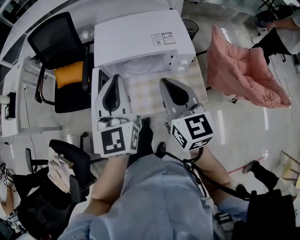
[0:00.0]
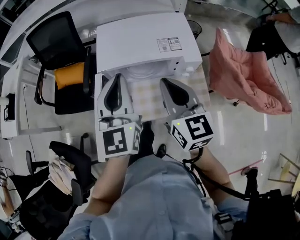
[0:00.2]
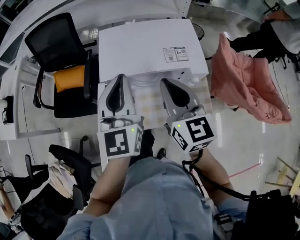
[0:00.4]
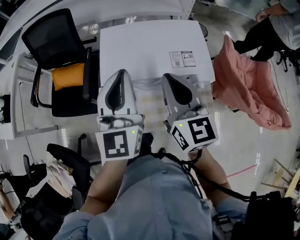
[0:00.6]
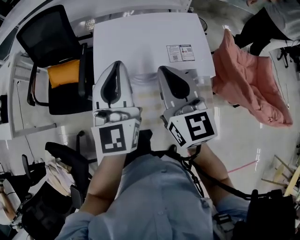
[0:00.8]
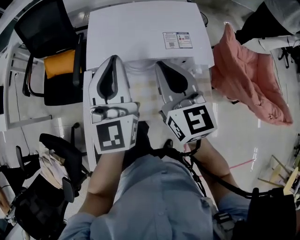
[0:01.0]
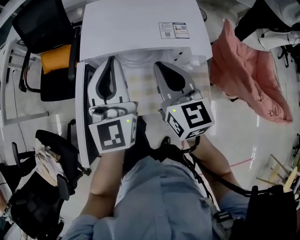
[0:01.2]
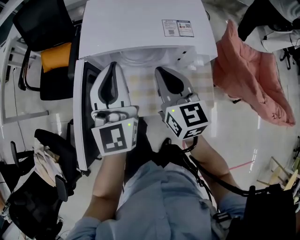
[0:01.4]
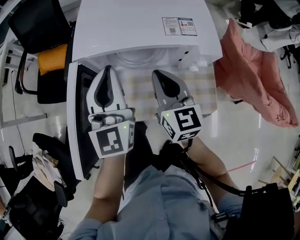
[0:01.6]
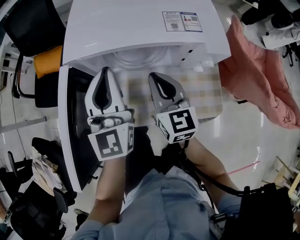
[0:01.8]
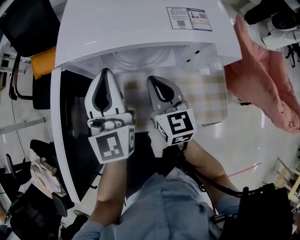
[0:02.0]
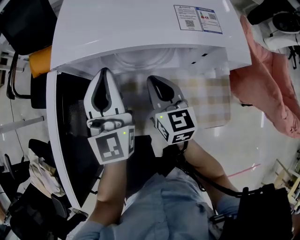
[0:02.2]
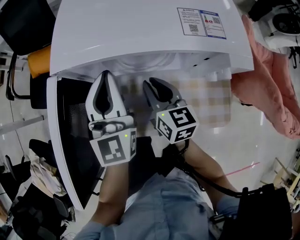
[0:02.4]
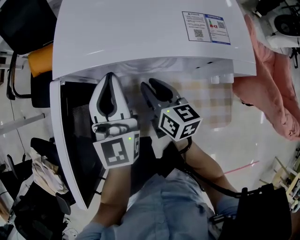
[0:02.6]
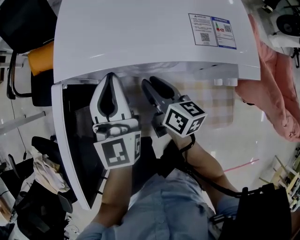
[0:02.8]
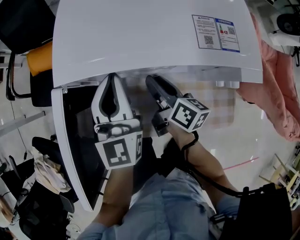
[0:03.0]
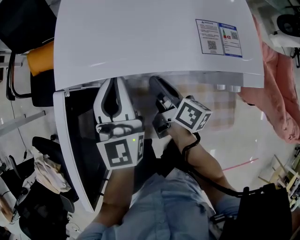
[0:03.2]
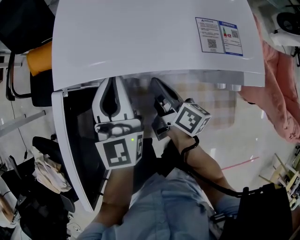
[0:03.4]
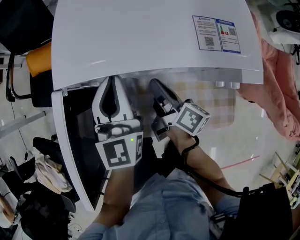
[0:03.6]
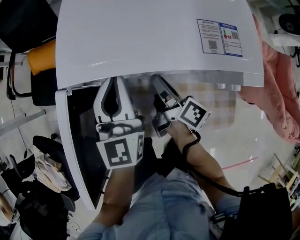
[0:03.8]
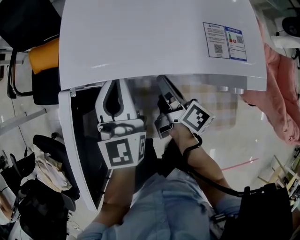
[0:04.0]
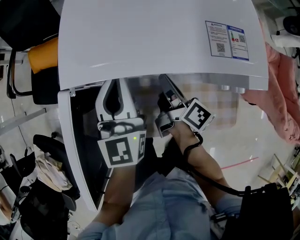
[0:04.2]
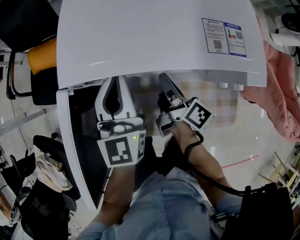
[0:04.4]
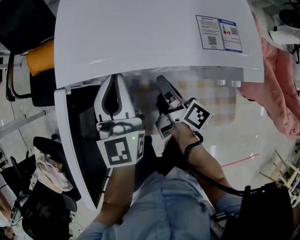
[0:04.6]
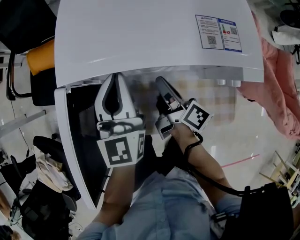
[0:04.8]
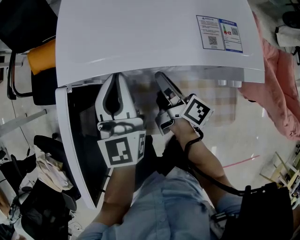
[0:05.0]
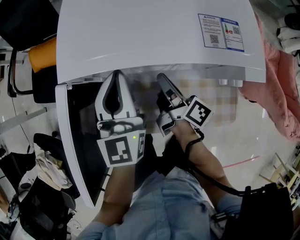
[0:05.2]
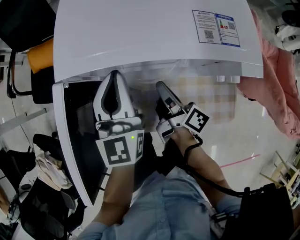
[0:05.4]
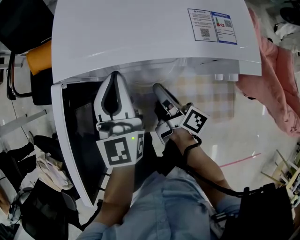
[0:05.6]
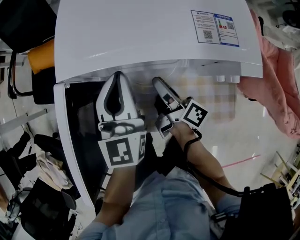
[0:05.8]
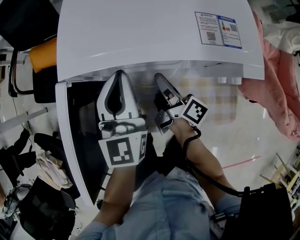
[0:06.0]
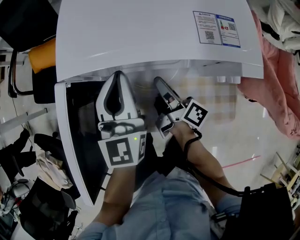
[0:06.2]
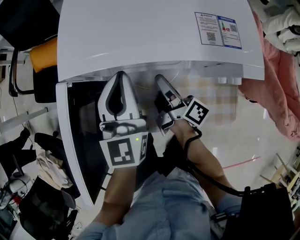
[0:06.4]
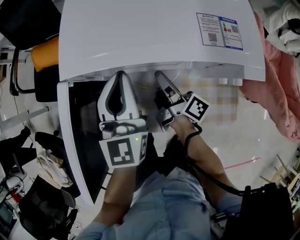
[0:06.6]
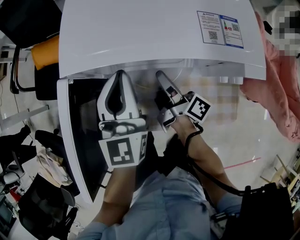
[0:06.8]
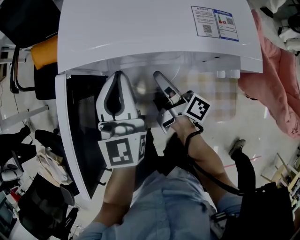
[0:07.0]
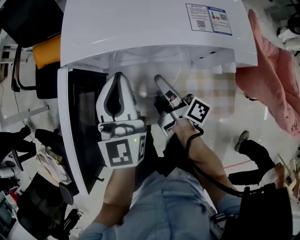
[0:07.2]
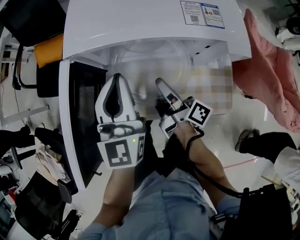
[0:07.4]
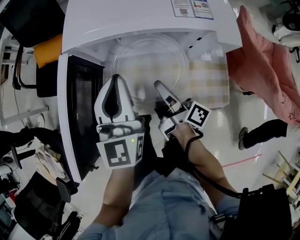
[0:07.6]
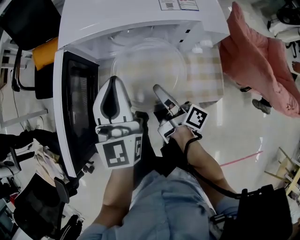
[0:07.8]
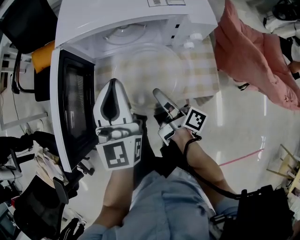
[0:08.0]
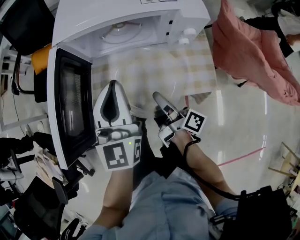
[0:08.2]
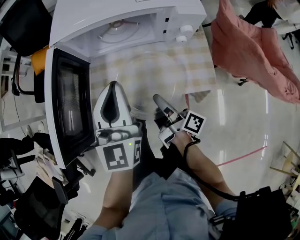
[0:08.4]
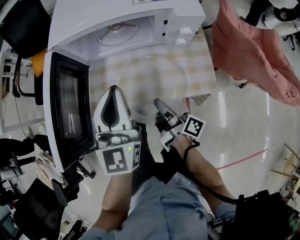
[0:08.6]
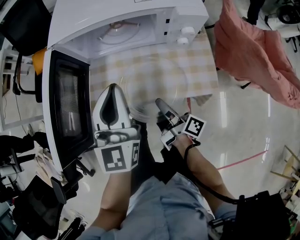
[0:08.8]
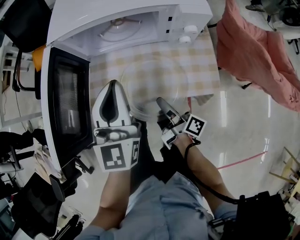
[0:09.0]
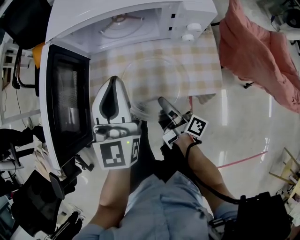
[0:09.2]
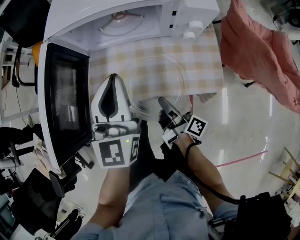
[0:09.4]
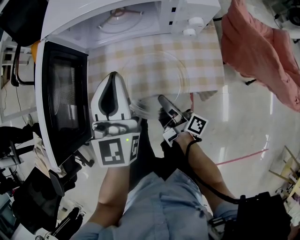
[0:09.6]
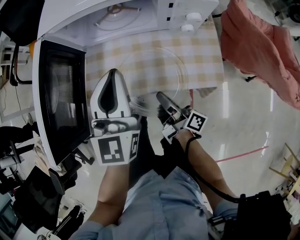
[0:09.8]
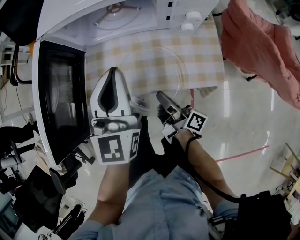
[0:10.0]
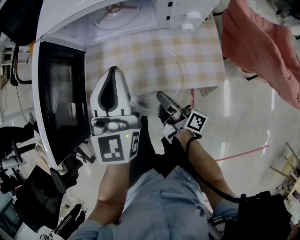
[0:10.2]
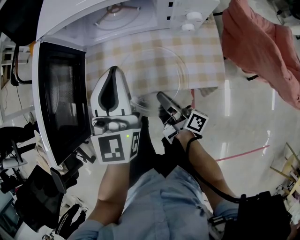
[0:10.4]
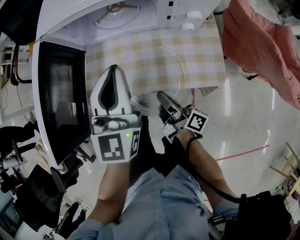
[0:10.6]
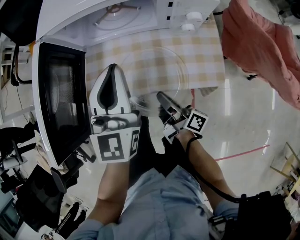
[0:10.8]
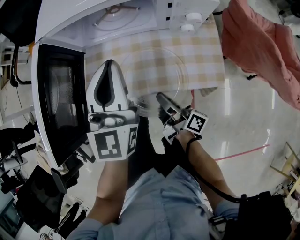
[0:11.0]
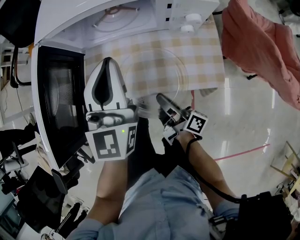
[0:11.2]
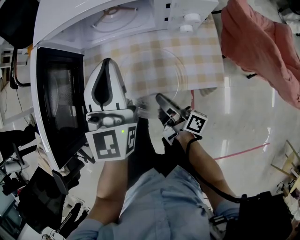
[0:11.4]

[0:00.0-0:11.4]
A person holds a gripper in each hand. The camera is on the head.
0:00.0 to 0:01.4: The grippers both shift downward and forward by about 15 cm.
0:01.4 to 0:02.8: The right gripper moves downward, some 20 cm, turns by approximately 30 degrees, and opens. The left gripper is displaced downward and forward by some 15 cm.
0:02.8 to 0:04.2: The right gripper changes its angle by about 30 degrees.
0:04.2 to 0:05.6: The right gripper travels backward by some 5 cm.
0:05.6 to 0:07.2: The grippers make only small movements.
0:07.2 to 0:08.6: The grippers both shift backward by roughly 15 cm.
0:08.6 to 0:11.4: The grippers stay close to where they were, moving slightly.

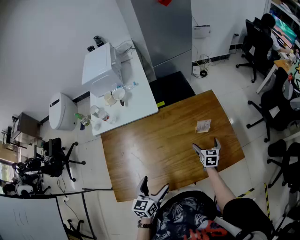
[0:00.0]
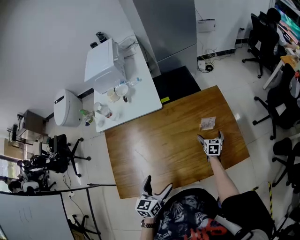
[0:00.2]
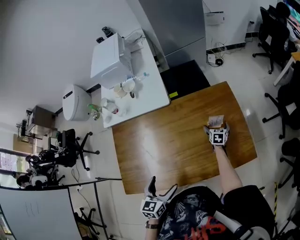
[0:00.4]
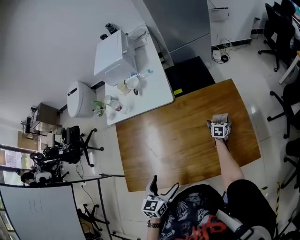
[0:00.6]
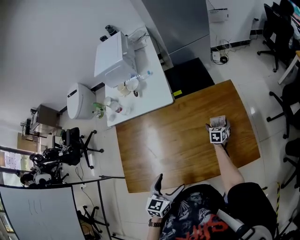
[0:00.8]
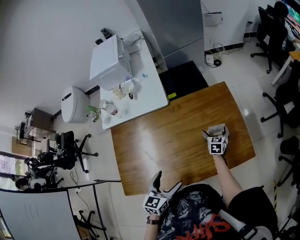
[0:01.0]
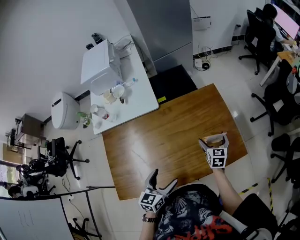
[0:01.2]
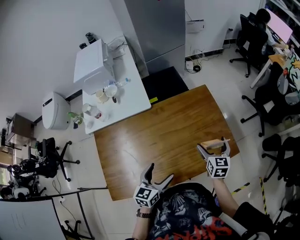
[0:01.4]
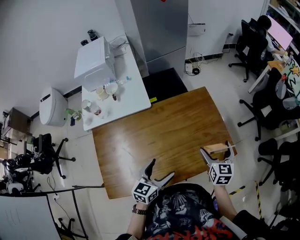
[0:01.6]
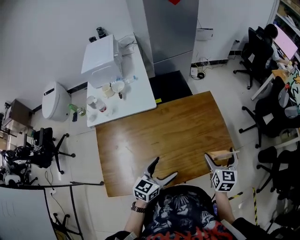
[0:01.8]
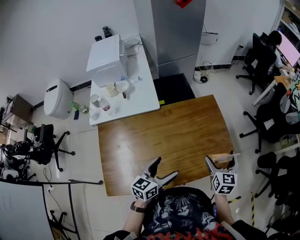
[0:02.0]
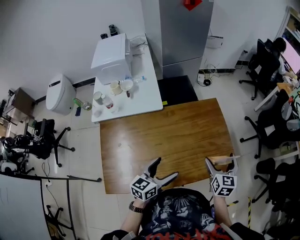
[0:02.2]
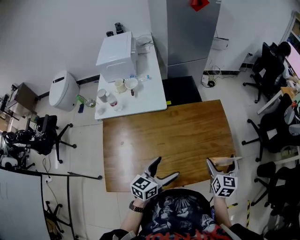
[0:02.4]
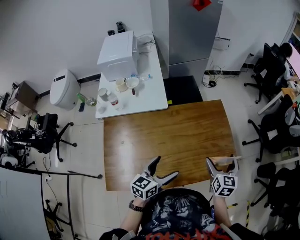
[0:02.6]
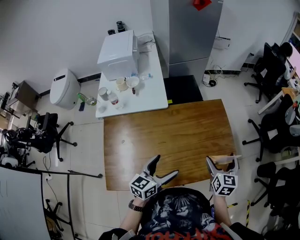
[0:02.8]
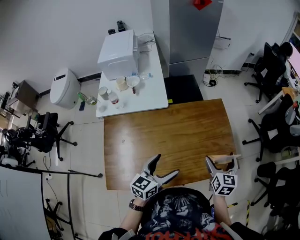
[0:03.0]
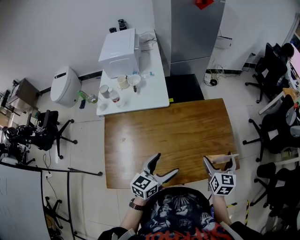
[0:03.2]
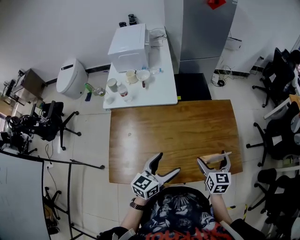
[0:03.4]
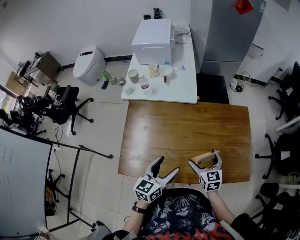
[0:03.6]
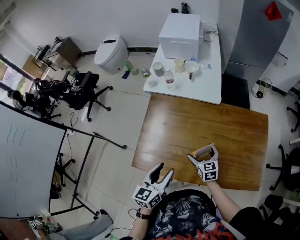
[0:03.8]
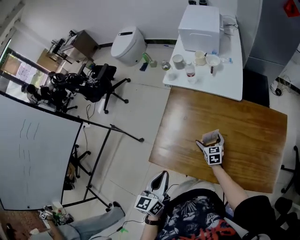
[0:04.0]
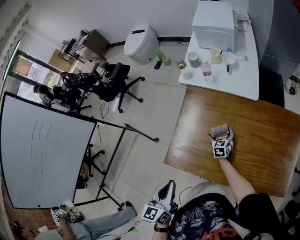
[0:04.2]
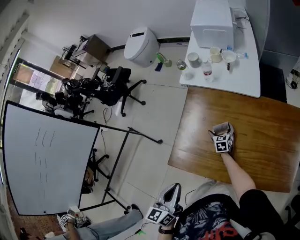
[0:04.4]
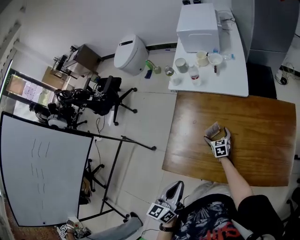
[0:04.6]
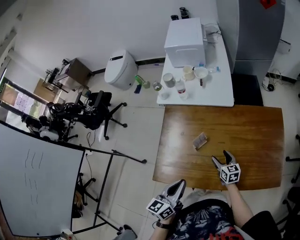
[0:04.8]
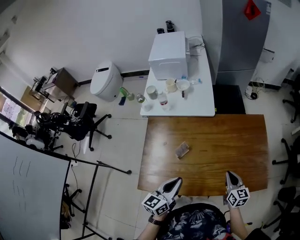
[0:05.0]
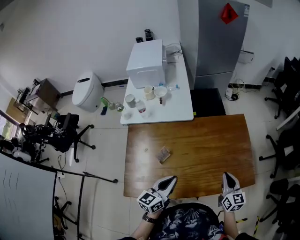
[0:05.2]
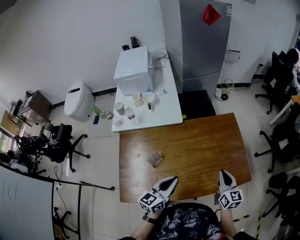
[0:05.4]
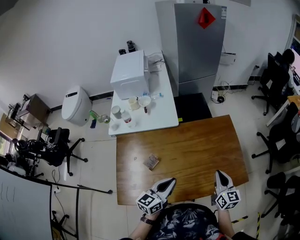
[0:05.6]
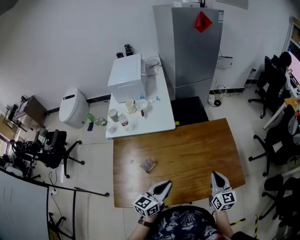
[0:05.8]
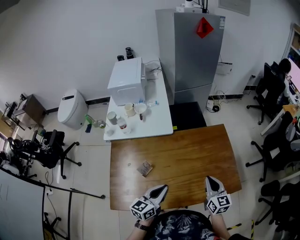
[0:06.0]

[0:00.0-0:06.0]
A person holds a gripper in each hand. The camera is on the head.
0:00.0 to 0:01.6: The right gripper travels upward by roughly 20 cm, while the left gripper travels forward and to the right by roughly 10 cm.
0:01.6 to 0:03.0: The left gripper ends up some 5 cm from where it was.
0:03.0 to 0:04.4: The left gripper changes place by roughly 35 cm, changes its angle by some 50 degrees, and closes, while the right gripper shifts by some 60 cm, and changes its angle by some 40 degrees.
0:04.4 to 0:06.0: The left gripper shifts by some 30 cm, and rotates roughly 50 degrees. Meanwhile the right gripper shifts by about 50 cm, changes its angle by roughly 40 degrees, and closes.

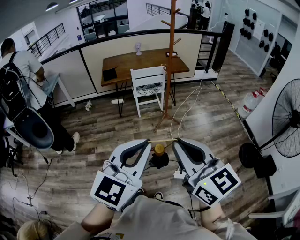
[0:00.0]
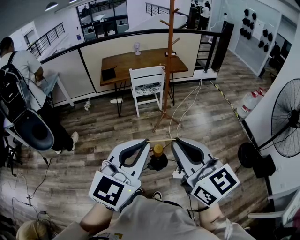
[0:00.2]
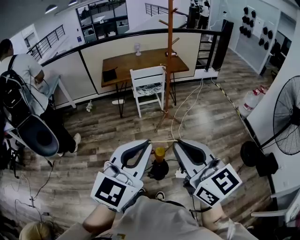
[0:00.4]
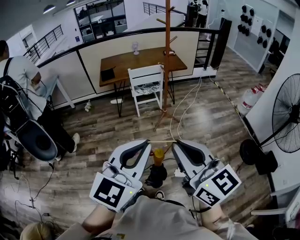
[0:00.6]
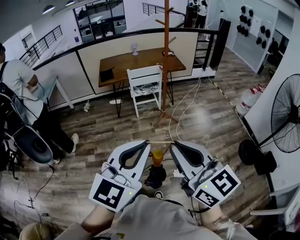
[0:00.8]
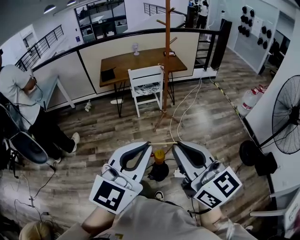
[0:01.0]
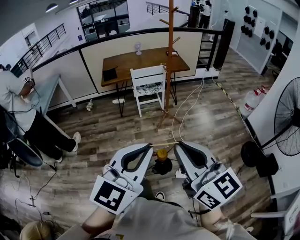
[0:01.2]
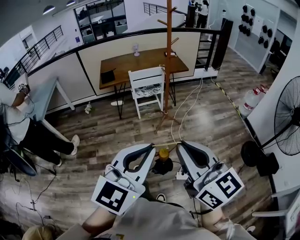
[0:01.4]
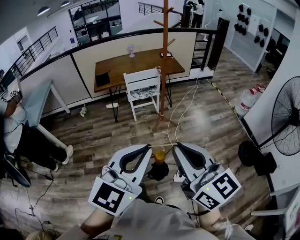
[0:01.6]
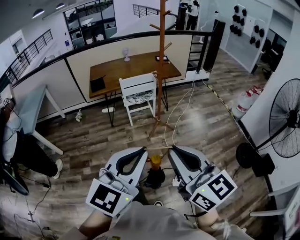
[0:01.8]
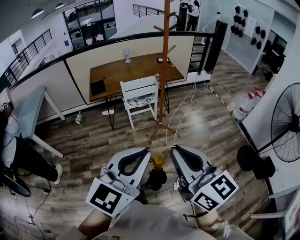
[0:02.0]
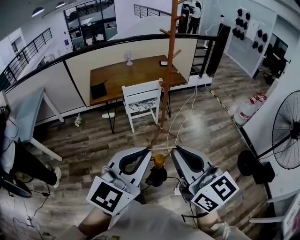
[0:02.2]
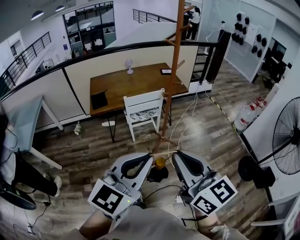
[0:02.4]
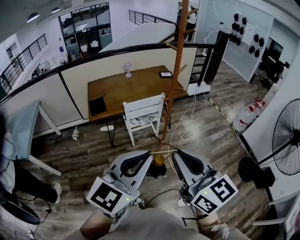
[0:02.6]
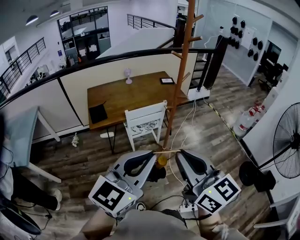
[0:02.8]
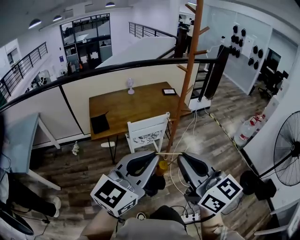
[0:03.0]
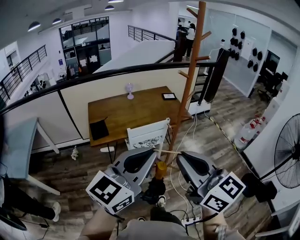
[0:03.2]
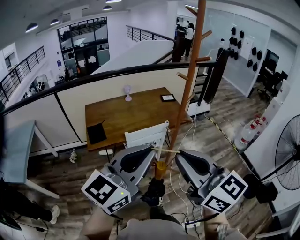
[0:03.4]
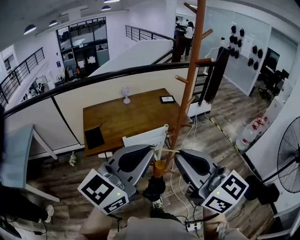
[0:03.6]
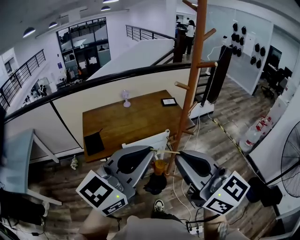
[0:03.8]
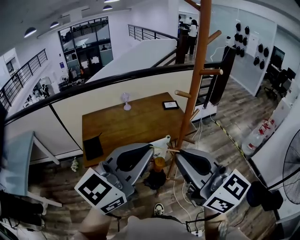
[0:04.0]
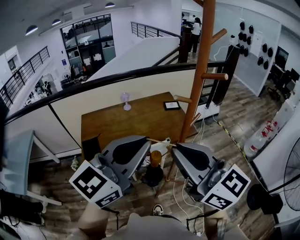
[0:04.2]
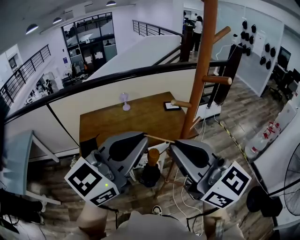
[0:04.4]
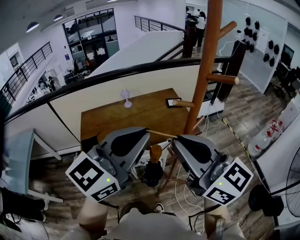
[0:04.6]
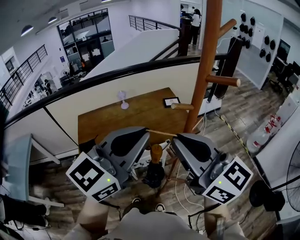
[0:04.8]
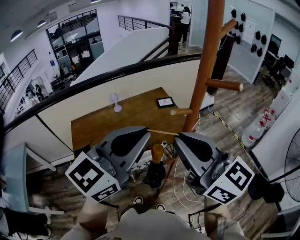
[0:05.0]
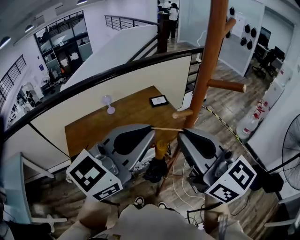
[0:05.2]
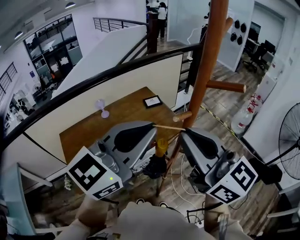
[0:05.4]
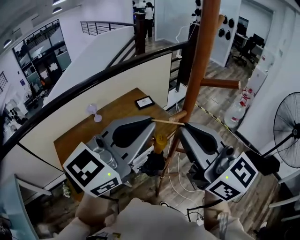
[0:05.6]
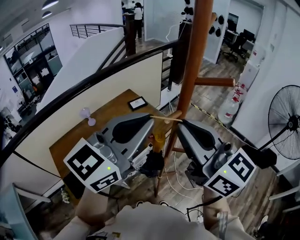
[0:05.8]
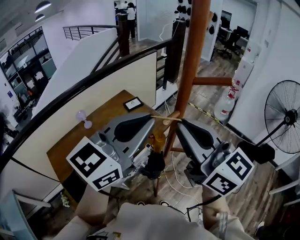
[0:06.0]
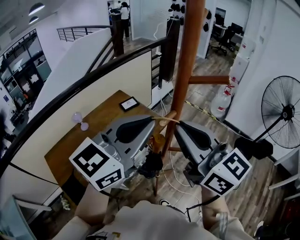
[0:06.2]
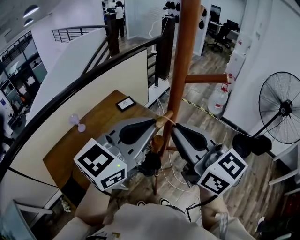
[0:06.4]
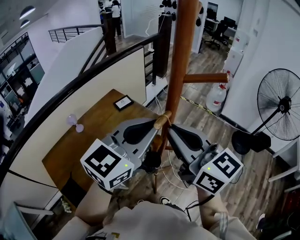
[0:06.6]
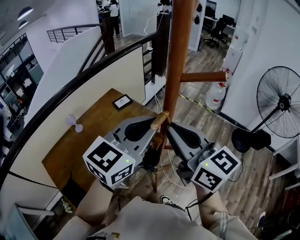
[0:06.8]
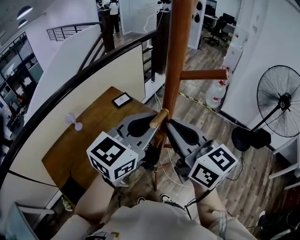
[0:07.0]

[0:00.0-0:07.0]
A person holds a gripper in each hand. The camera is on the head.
0:00.0 to 0:01.4: The grippers stay close to where they were, moving slightly.
0:01.4 to 0:02.8: Both grippers move forward and to the left, approximately 35 cm.
0:02.8 to 0:04.2: Both grippers travel together forward, about 35 cm.
0:04.2 to 0:05.6: The left gripper ends up approximately 15 cm from where it was, and rotates approximately 20 degrees. The right gripper ends up approximately 15 cm from where it was, and changes its angle by roughly 30 degrees.
0:05.6 to 0:07.0: The left gripper travels downward, forward and to the right by some 15 cm. Meanwhile the right gripper is displaced downward and forward by roughly 10 cm.
